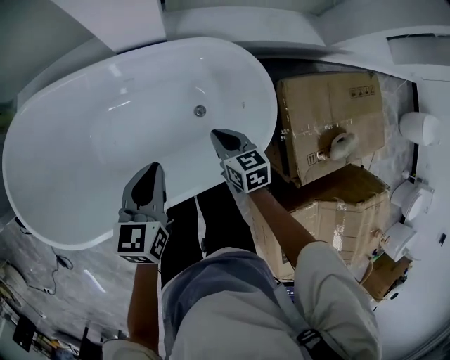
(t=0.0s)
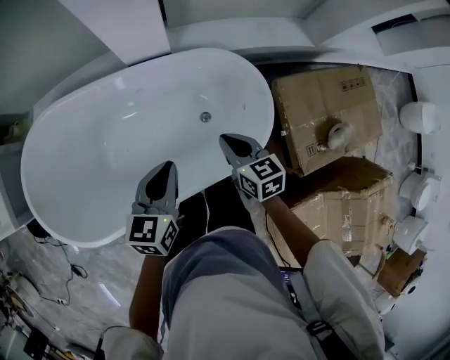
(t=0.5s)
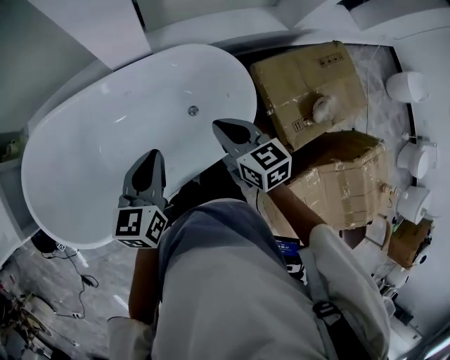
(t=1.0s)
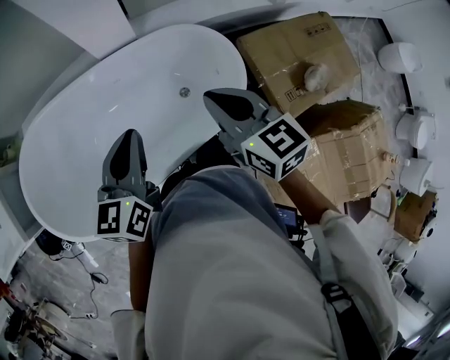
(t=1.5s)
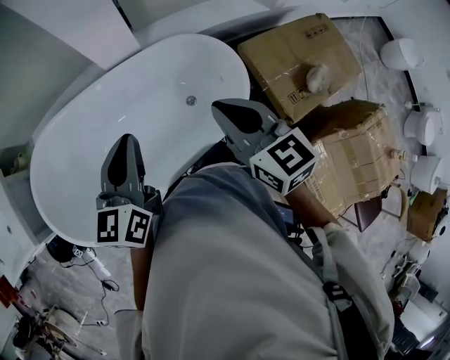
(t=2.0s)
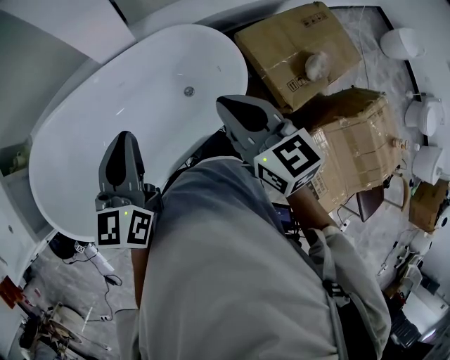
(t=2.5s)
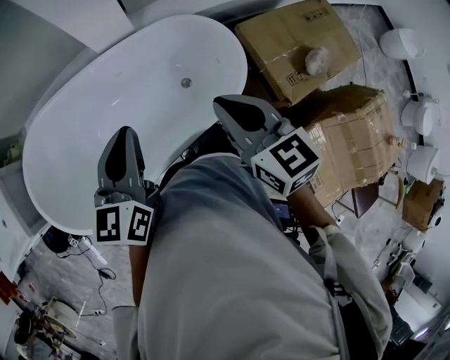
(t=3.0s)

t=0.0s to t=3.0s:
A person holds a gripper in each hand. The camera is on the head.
t=0.0s to t=1.5s: The left gripper heads upward and backward, covering some 20 cm. Meanwhile the right gripper travels upward by about 35 cm, and rotates approximately 20 degrees.
t=1.5s to t=3.0s: The right gripper goes about 5 cm backward.

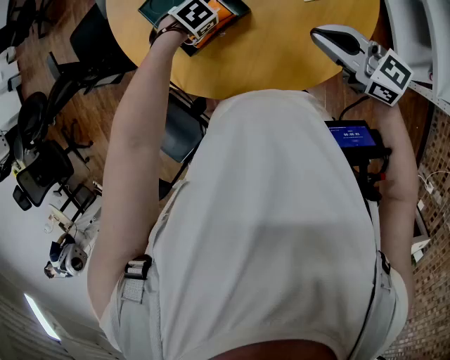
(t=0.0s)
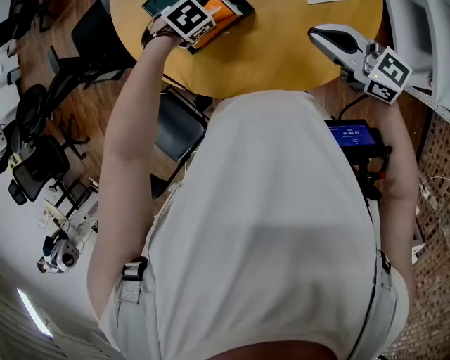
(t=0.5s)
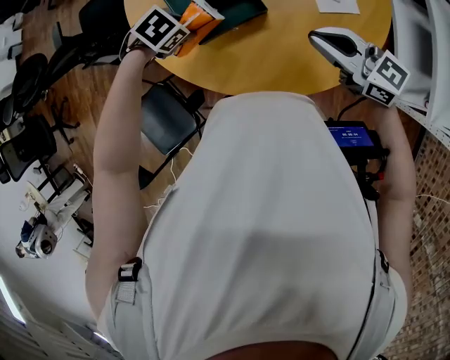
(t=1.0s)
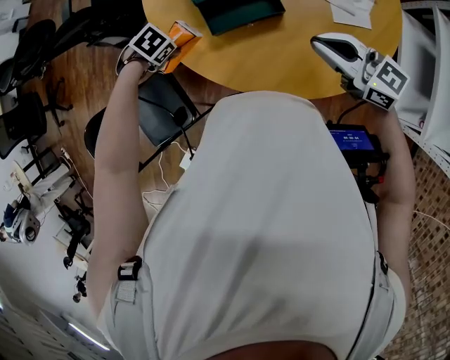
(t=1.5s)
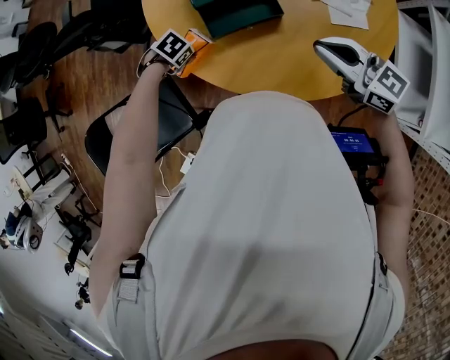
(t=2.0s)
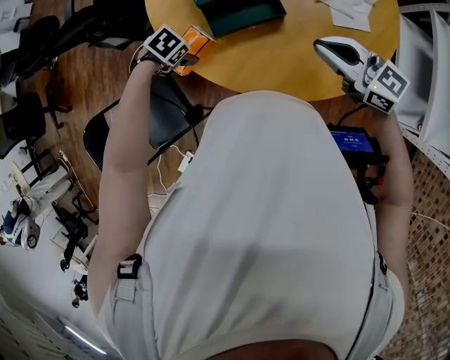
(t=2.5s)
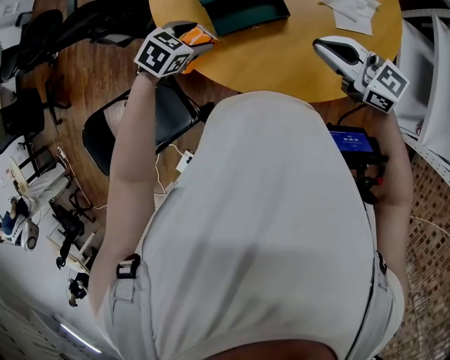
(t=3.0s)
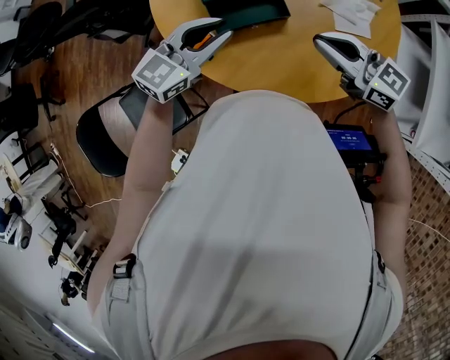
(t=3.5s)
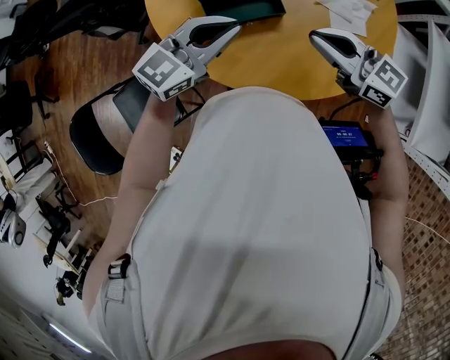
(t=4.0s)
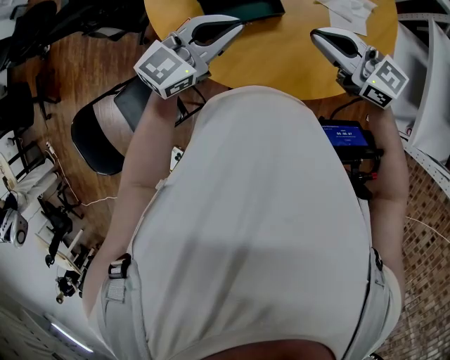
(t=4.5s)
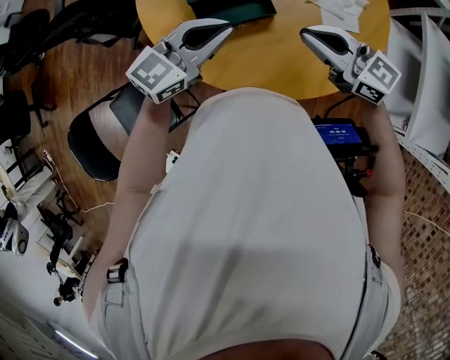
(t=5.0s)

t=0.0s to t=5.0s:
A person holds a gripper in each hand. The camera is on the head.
t=0.0s to t=2.5s: The right gripper shifts by about 5 cm; the left gripper moves up and down over about 10 cm, changing direction 2 times, and opens.
t=2.5s to t=5.0s: The left gripper shifts about 20 cm upward, tilts its fingers some 70 degrees upward, and closes.

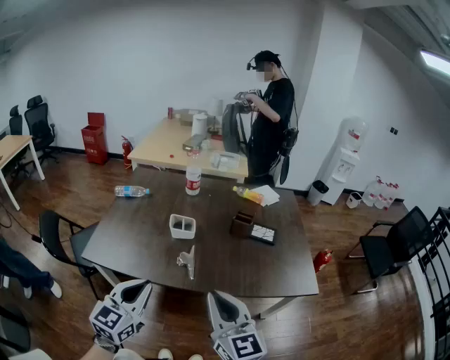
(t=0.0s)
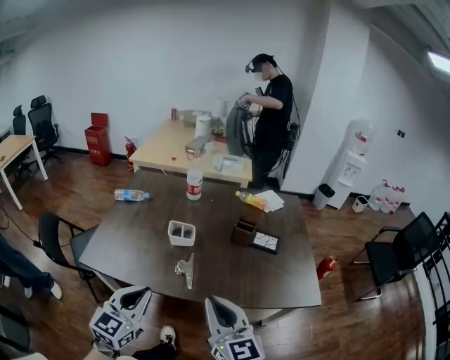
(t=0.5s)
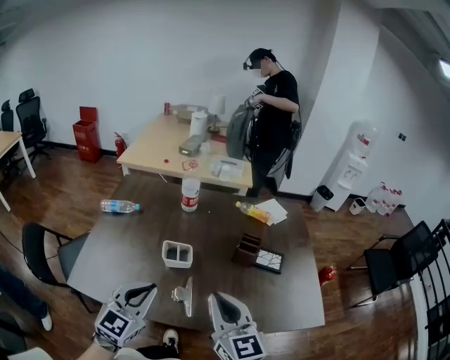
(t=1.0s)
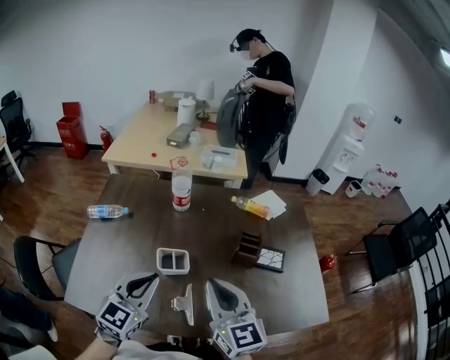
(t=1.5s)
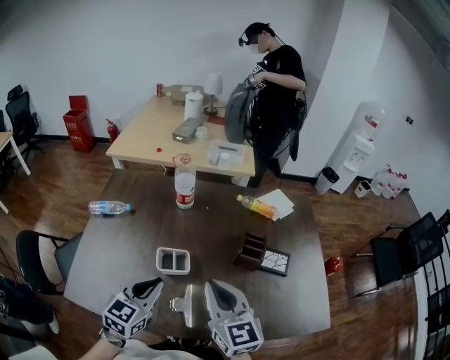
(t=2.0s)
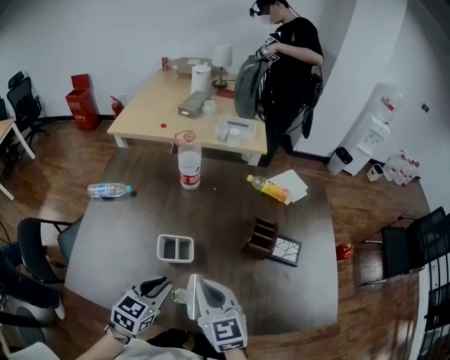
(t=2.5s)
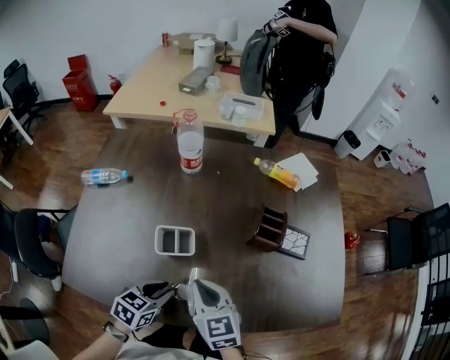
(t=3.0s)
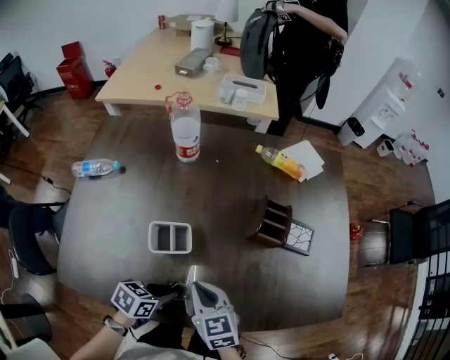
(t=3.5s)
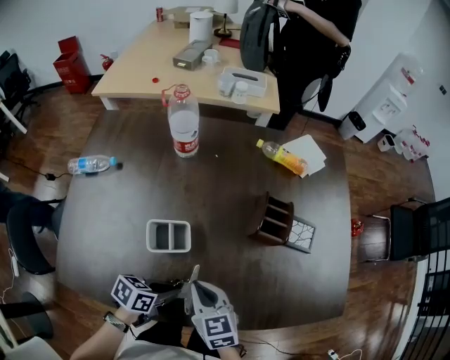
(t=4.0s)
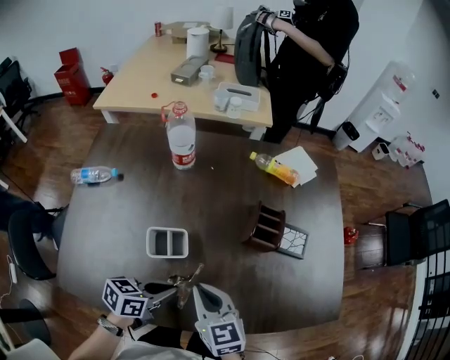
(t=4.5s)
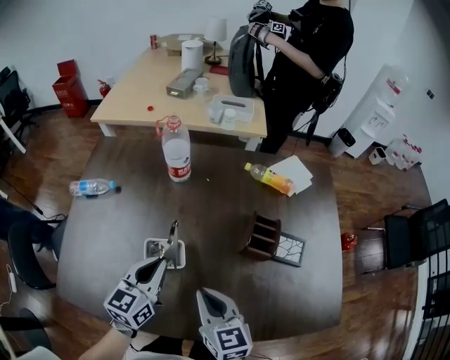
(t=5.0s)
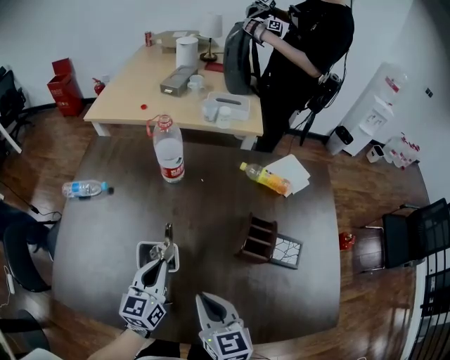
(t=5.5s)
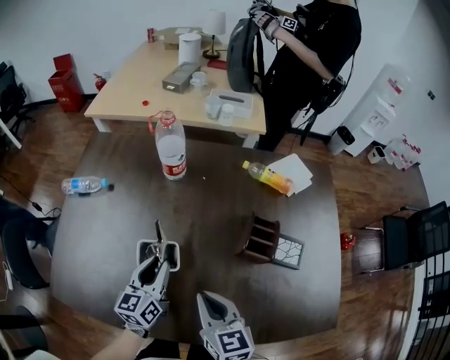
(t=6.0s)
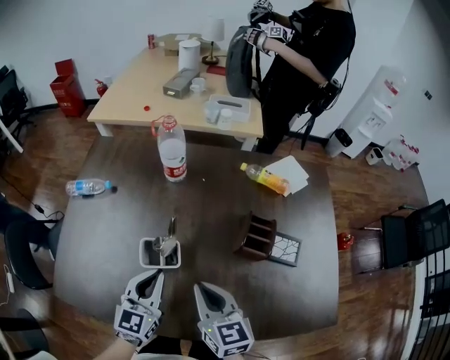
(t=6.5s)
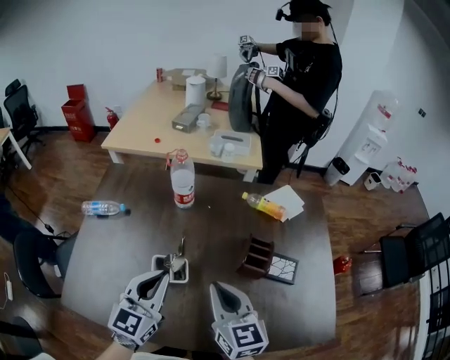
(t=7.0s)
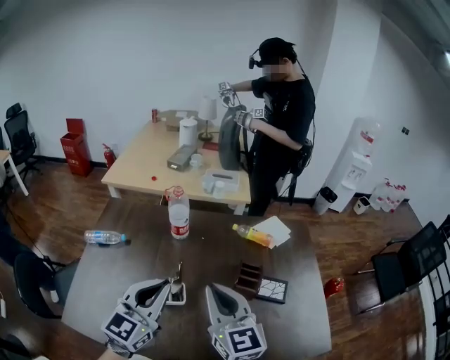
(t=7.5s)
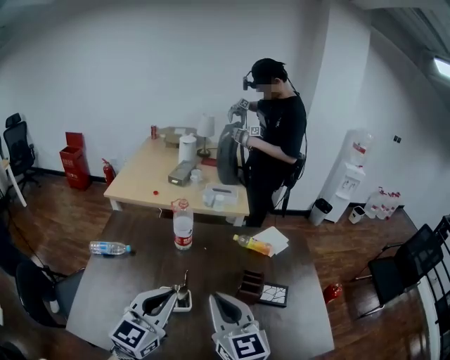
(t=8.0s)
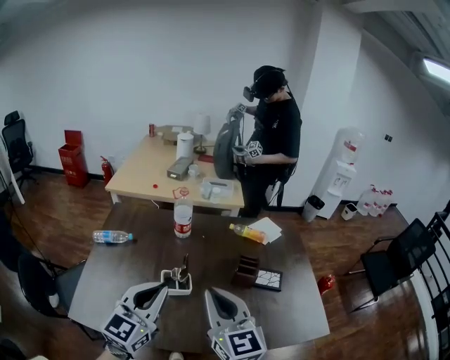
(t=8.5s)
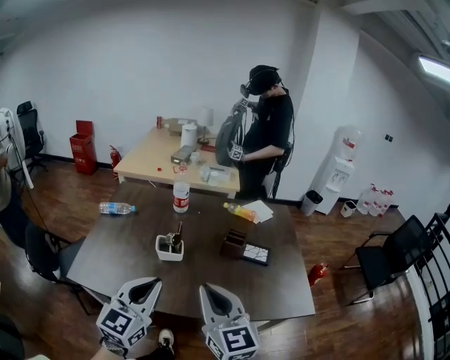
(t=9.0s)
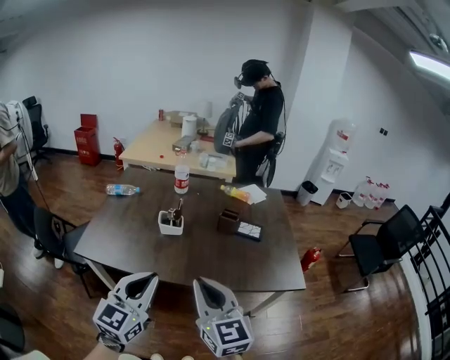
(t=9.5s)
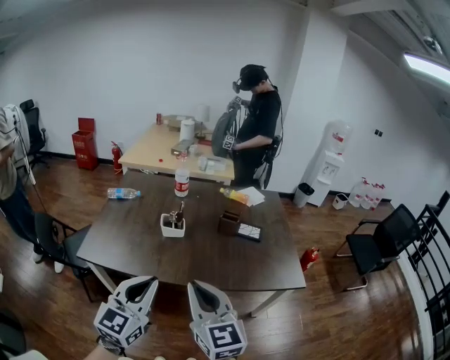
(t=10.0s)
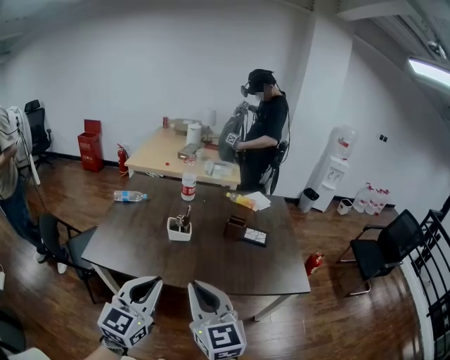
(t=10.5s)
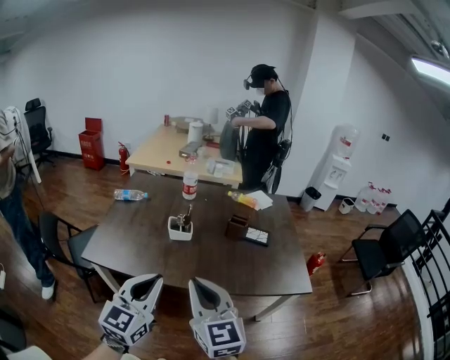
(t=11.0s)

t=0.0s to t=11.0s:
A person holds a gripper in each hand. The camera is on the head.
t=0.0s to t=2.0s: The grippers both shift forward by approximately 30 cm.
t=2.0s to t=3.5s: Both grippers move downward, about 20 cm. The right gripper swivels about 30 degrees; the left gripper rotates roughly 50 degrees.
t=3.5s to t=5.5s: The left gripper ends up some 20 cm from where it was, tips its fingers upward by some 30 degrees, and closes up, while the right gripper travels upward by approximately 5 cm.
t=5.5s to t=7.5s: Both grippers move upward, approximately 20 cm. The right gripper swivels approximately 30 degrees. Meanwhile the left gripper turns by approximately 30 degrees, and opens, then closes again.
t=7.5s to t=9.0s: The grippers both shift backward by some 25 cm.
t=9.0s to t=11.0s: Both grippers travel together backward, about 15 cm.

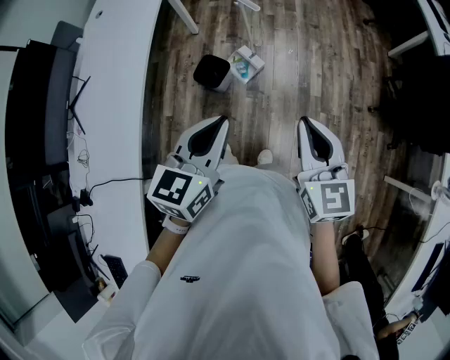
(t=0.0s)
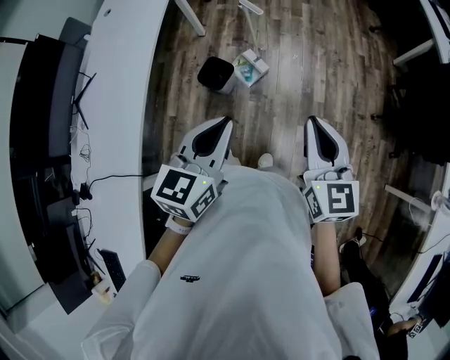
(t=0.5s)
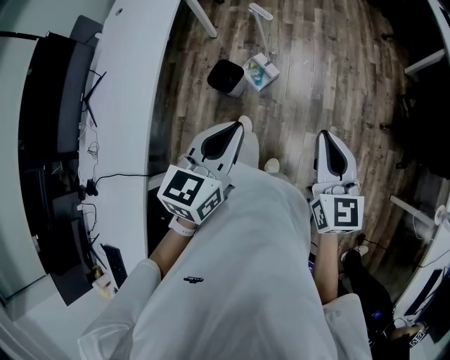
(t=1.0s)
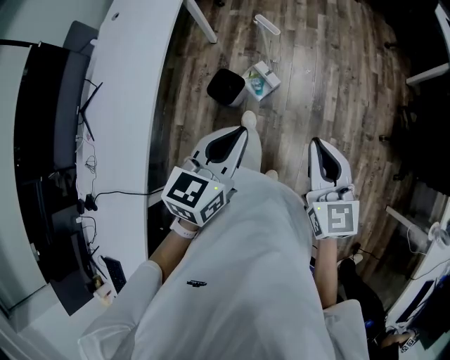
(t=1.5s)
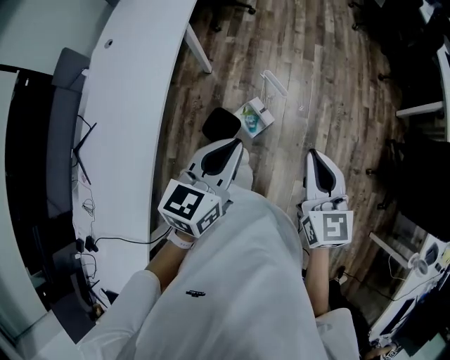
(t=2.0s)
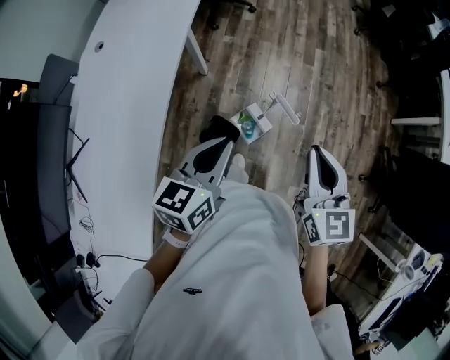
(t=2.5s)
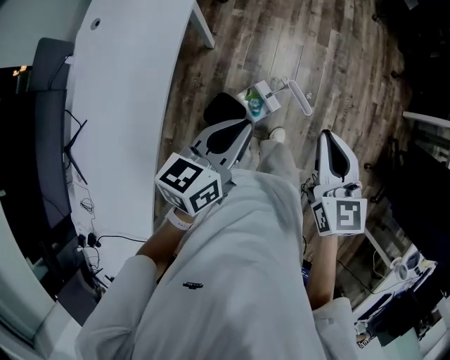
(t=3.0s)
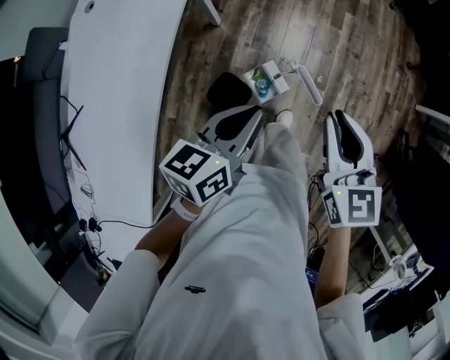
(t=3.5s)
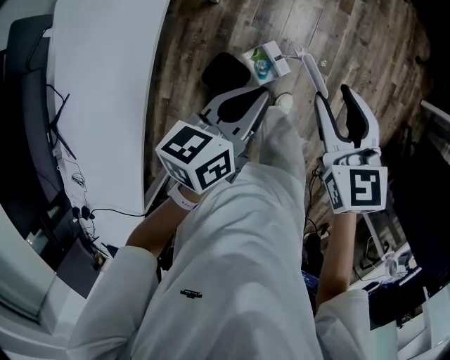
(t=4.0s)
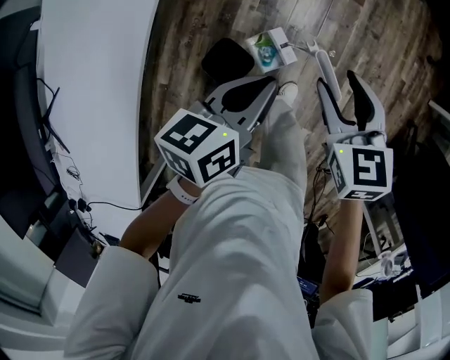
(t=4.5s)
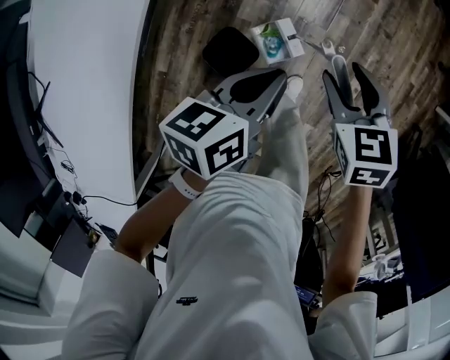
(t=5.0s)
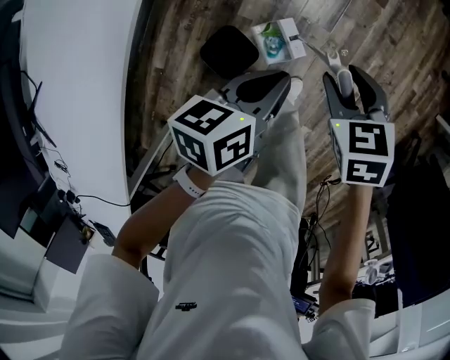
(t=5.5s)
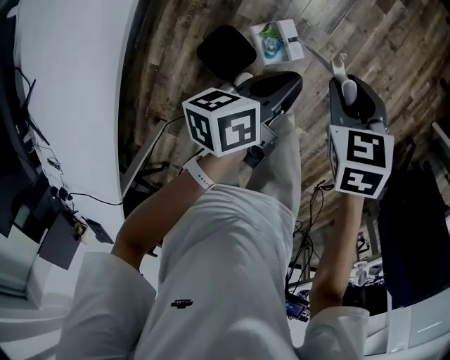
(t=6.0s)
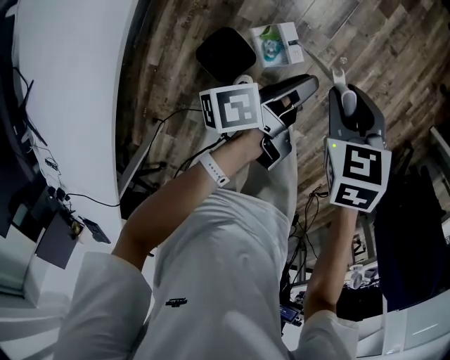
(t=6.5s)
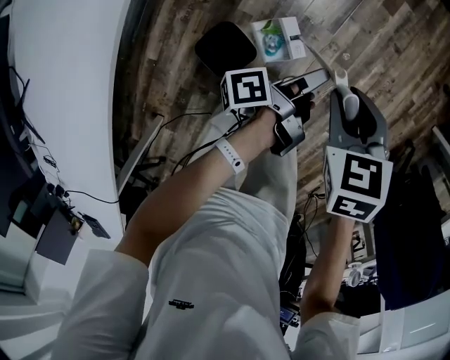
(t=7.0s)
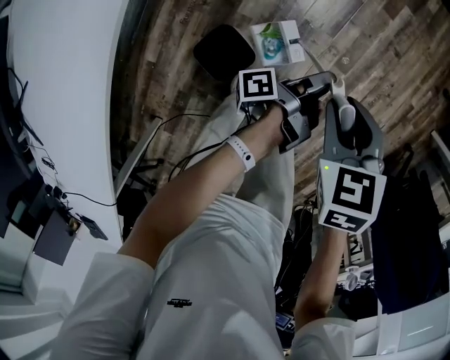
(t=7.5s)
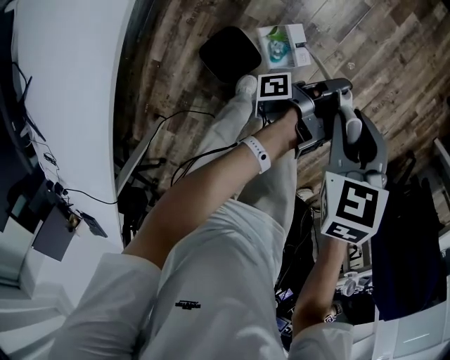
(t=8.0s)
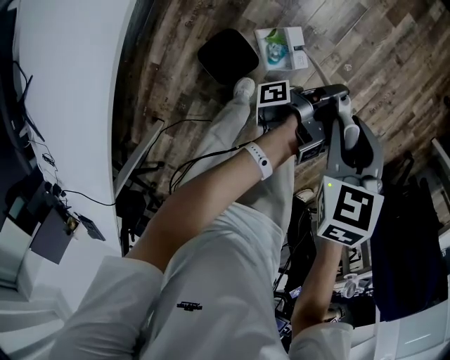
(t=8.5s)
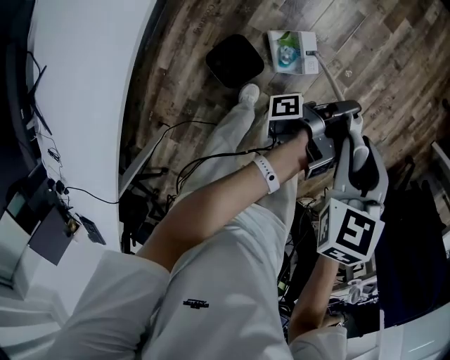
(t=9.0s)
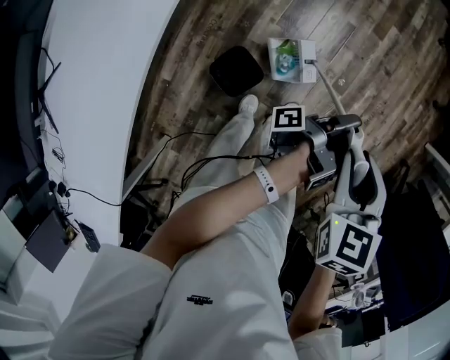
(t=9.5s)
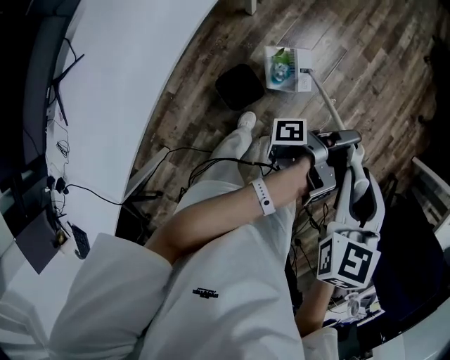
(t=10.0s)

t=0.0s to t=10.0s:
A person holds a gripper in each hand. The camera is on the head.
t=0.0s to t=2.0s: The right gripper shifts by roughly 30 cm.
t=2.0s to t=4.0s: The right gripper moves approximately 25 cm, turns by approximately 20 degrees, and opens up.
t=4.0s to t=6.0s: The right gripper goes approximately 20 cm downward, and angles its fingers downward, by roughly 30 degrees.
t=8.0s to t=10.0s: The right gripper shifts roughly 25 cm upward, and rotates about 20 degrees.
